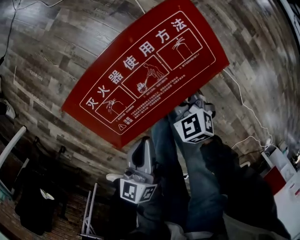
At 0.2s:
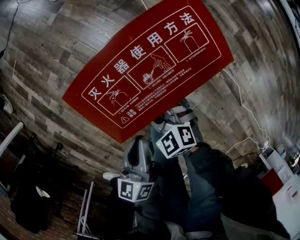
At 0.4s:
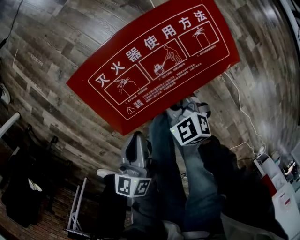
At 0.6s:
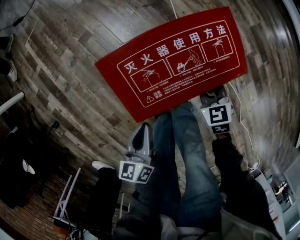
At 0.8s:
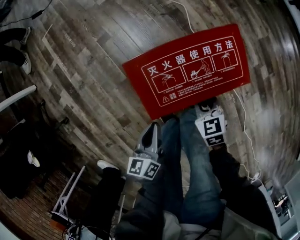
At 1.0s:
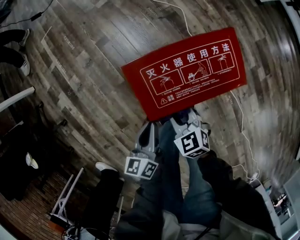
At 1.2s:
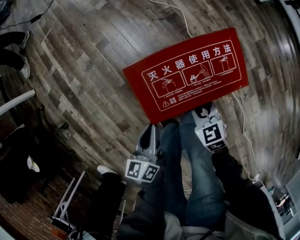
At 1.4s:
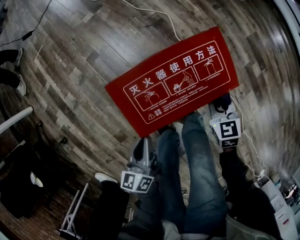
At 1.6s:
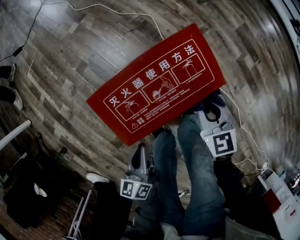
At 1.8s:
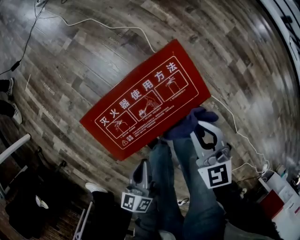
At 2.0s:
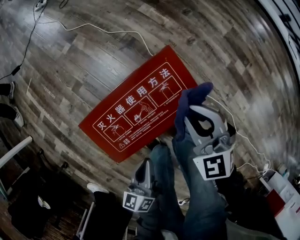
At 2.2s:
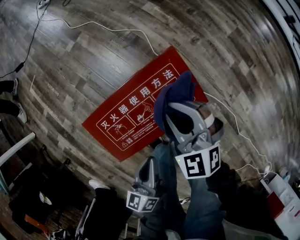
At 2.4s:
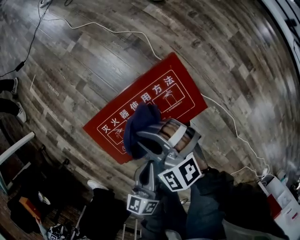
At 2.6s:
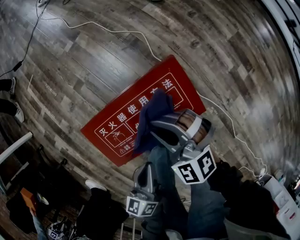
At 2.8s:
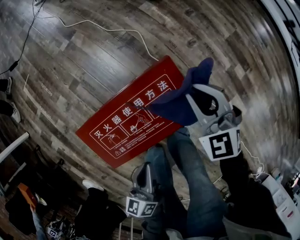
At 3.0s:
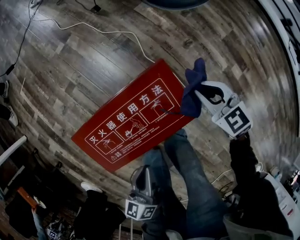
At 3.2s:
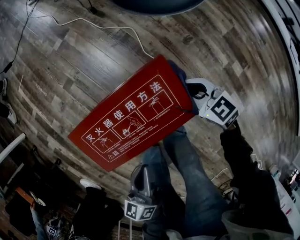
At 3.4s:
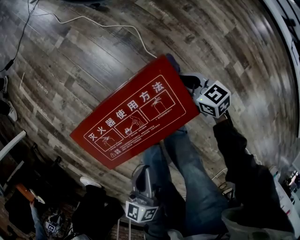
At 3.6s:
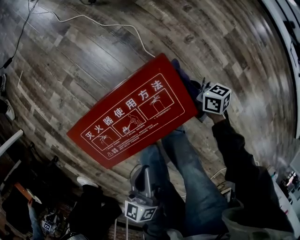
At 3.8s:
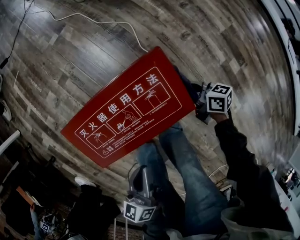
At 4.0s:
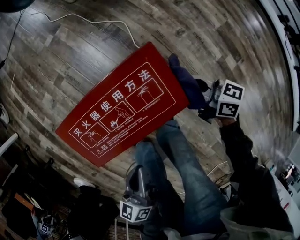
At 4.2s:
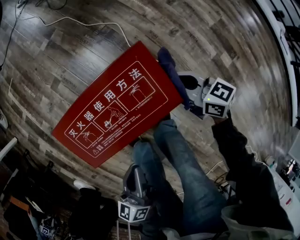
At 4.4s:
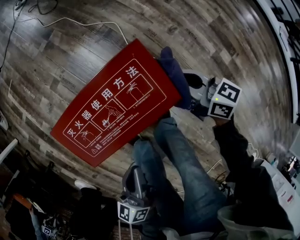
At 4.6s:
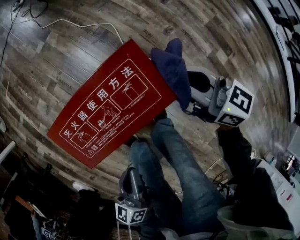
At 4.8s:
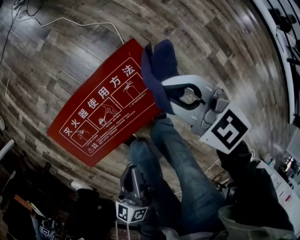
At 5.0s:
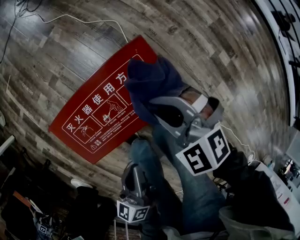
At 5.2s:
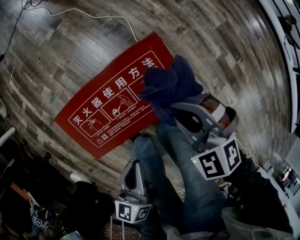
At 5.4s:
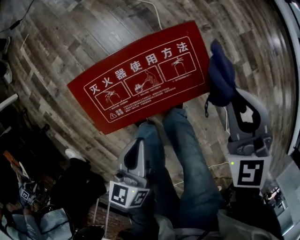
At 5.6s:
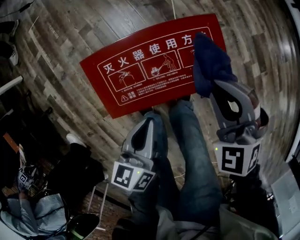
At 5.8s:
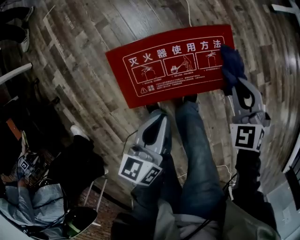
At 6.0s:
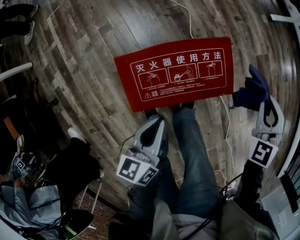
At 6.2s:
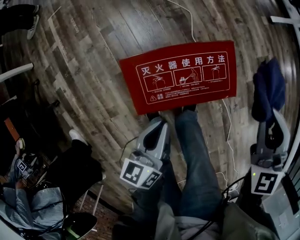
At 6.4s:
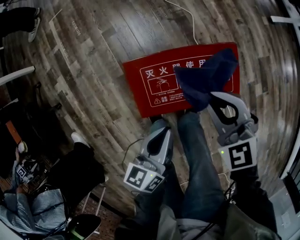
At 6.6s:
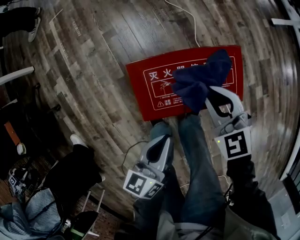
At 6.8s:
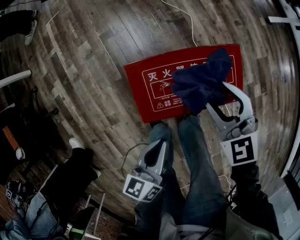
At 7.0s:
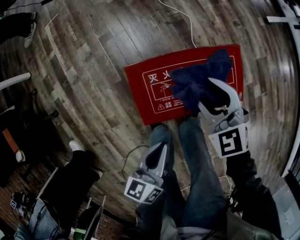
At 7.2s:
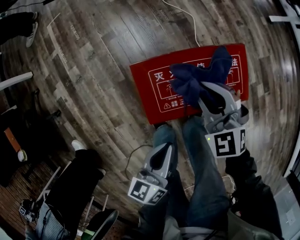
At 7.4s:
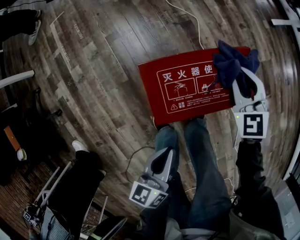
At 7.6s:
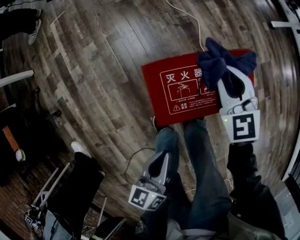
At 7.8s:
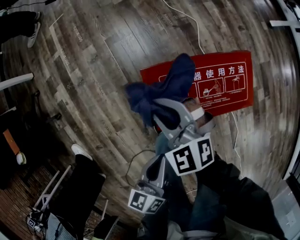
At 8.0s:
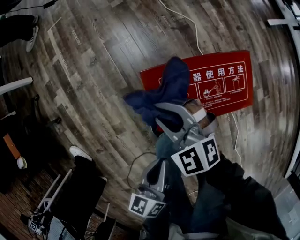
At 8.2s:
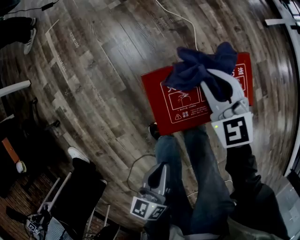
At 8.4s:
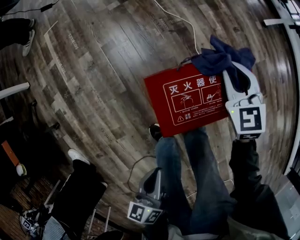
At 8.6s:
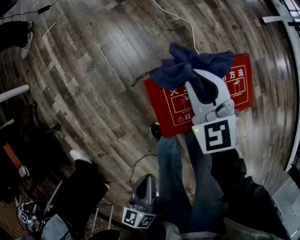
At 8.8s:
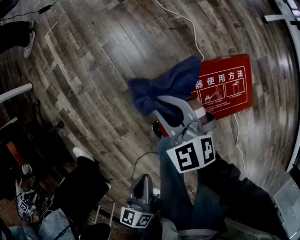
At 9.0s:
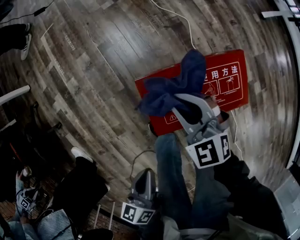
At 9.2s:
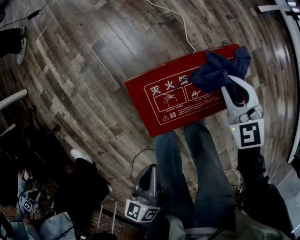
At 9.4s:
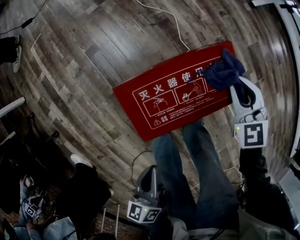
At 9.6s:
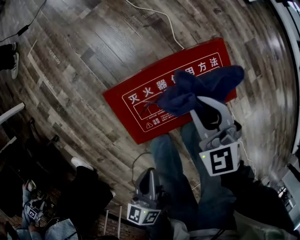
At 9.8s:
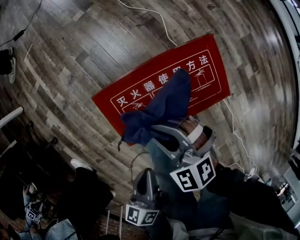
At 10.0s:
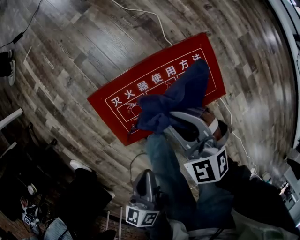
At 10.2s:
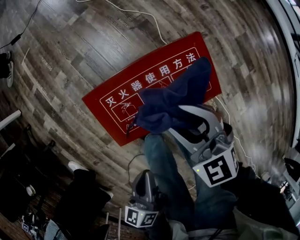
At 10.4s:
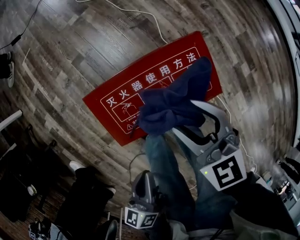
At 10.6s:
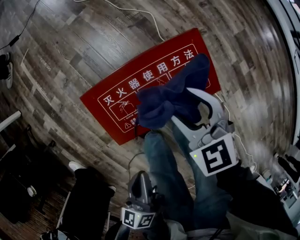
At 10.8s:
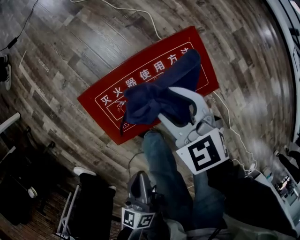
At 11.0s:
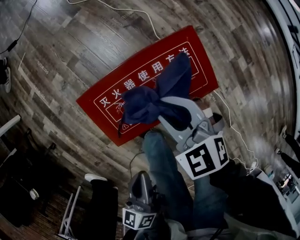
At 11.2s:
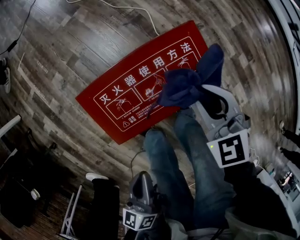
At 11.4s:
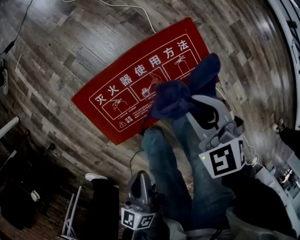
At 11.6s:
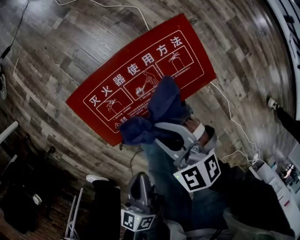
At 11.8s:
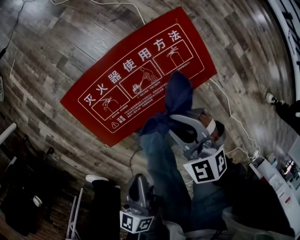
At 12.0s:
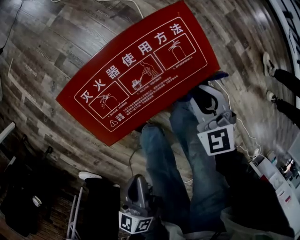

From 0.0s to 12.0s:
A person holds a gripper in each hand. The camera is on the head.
From 0.0s to 1.6s: The right gripper swings left and right, about 20 cm each way, with 3 reversals, and swivels approximately 20 degrees.
From 1.6s to 3.0s: The left gripper heads to the right and upward, covering about 10 cm, while the right gripper is displaced to the right and forward by about 15 cm.
From 3.0s to 4.4s: The right gripper reaches about 10 cm downward, then returns, and changes its angle by approximately 40 degrees.
From 4.4s to 6.0s: The left gripper moves forward, approximately 5 cm. Meanwhile the right gripper moves up and down over about 15 cm, changing direction 2 times, and twists some 60 degrees counterclockwise, seen from behind.
From 6.0s to 7.6s: The right gripper moves roughly 25 cm, rotates approximately 20 degrees, and opens, then closes again, while the left gripper shifts by about 10 cm.
From 7.6s to 9.0s: The right gripper goes left and right, about 20 cm each way, reversing 3 times. Meanwhile the left gripper shifts about 5 cm to the left.
From 9.0s to 10.4s: The right gripper moves left and right over roughly 25 cm, changing direction 2 times, and opens. Meanwhile the left gripper goes some 10 cm to the right.
From 10.4s to 12.0s: The right gripper swings left and right, some 15 cm each way, with 2 reversals, turns by approximately 20 degrees, and closes.

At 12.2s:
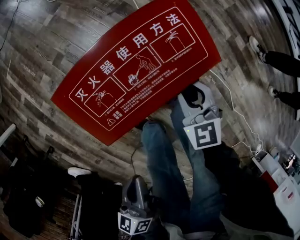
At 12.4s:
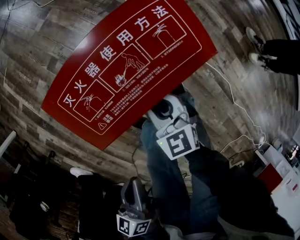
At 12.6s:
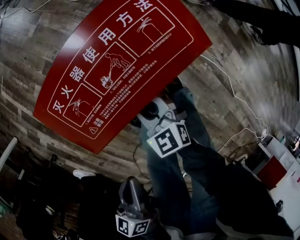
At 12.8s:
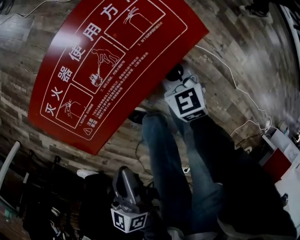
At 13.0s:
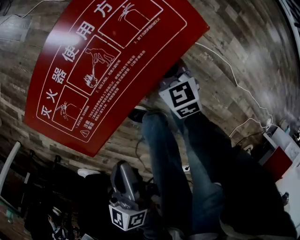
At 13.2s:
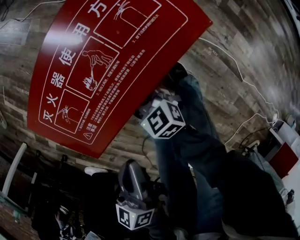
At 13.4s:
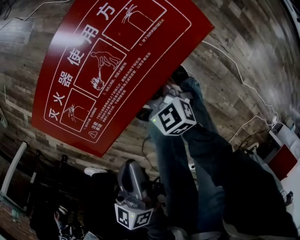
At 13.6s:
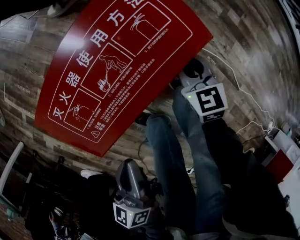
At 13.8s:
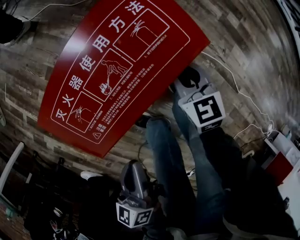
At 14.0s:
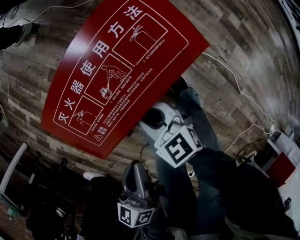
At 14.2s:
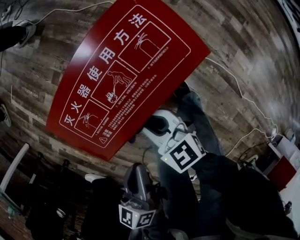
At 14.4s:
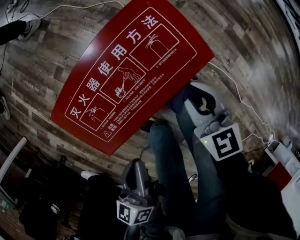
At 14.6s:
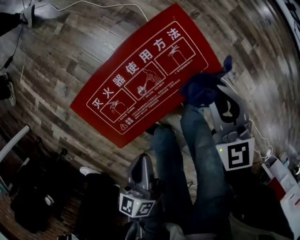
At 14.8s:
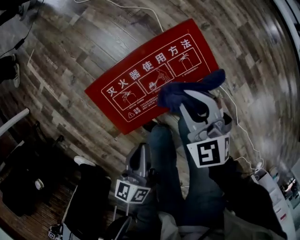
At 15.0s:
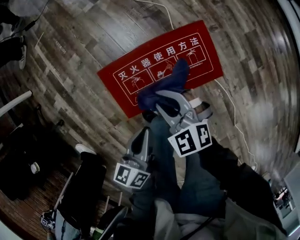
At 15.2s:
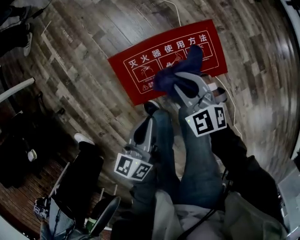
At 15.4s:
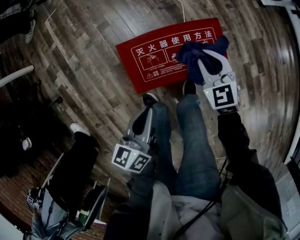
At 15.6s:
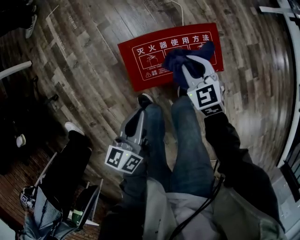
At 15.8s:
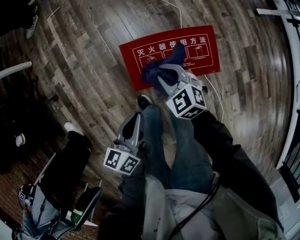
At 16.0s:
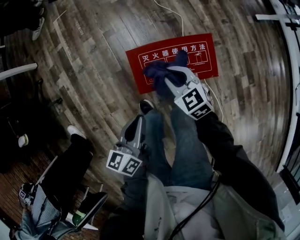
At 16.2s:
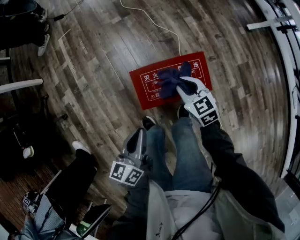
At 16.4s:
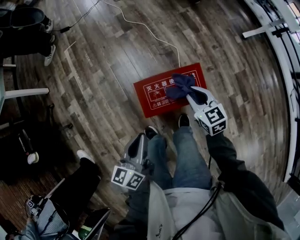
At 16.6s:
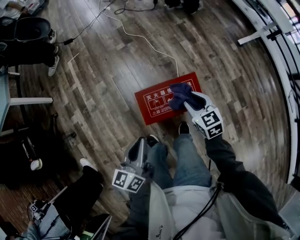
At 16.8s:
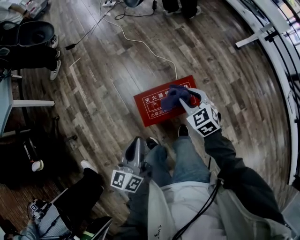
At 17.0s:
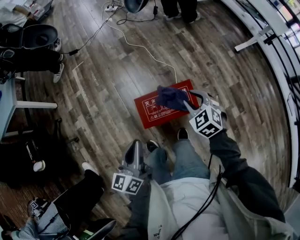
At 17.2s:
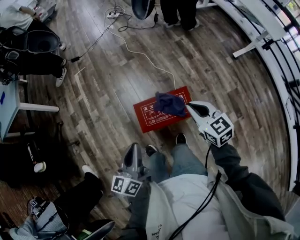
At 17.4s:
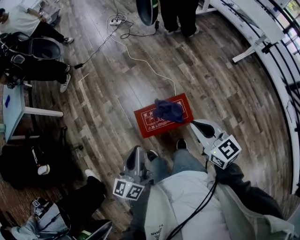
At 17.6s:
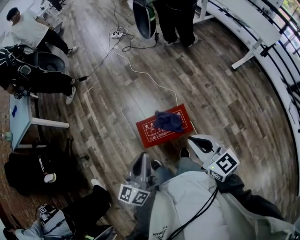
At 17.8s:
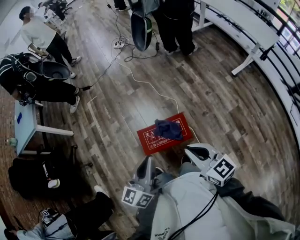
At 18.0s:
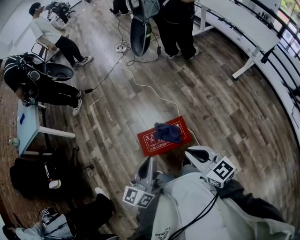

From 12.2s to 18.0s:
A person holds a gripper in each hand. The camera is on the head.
From 12.2s to 13.6s: The right gripper goes left and right, about 15 cm each way, reversing 3 times. Meanwhile the left gripper moves forward, about 5 cm.
From 13.6s to 15.0s: The right gripper moves left and right over about 20 cm, changing direction 2 times, and turns by about 50 degrees. Meanwhile the left gripper ends up about 5 cm from where it was.
From 15.0s to 16.6s: The left gripper goes approximately 20 cm upward; the right gripper moves upward and to the right, roughly 15 cm, swivels roughly 20 degrees, and opens its fingers.
From 16.6s to 18.0s: The right gripper shifts about 30 cm upward and backward, turns by some 30 degrees, and closes its fingers; the left gripper goes approximately 25 cm upward and to the right.

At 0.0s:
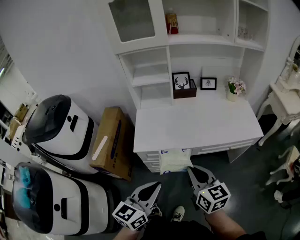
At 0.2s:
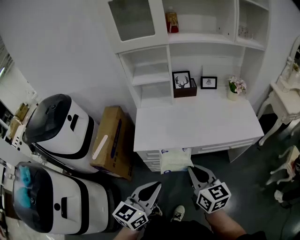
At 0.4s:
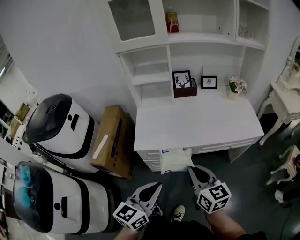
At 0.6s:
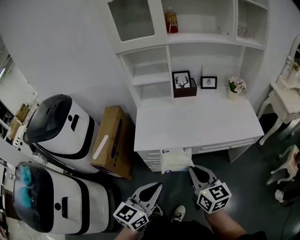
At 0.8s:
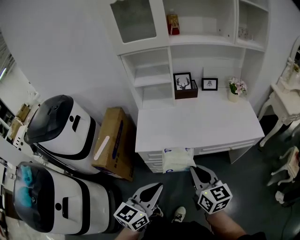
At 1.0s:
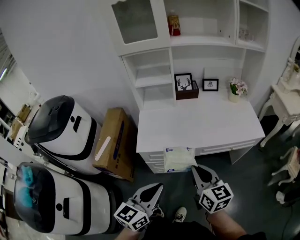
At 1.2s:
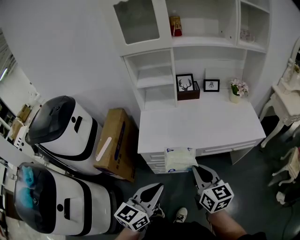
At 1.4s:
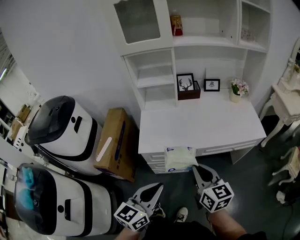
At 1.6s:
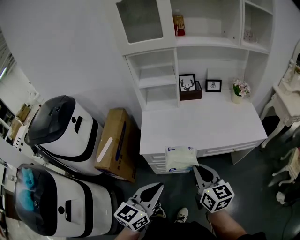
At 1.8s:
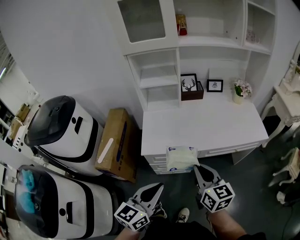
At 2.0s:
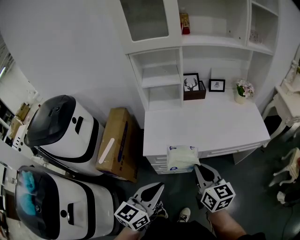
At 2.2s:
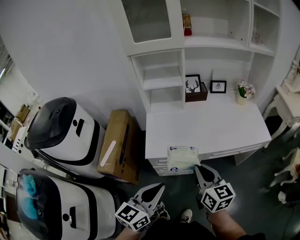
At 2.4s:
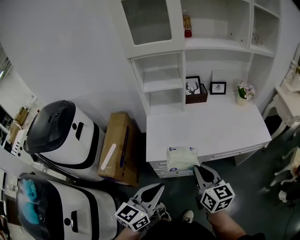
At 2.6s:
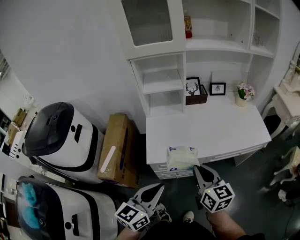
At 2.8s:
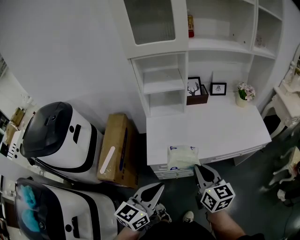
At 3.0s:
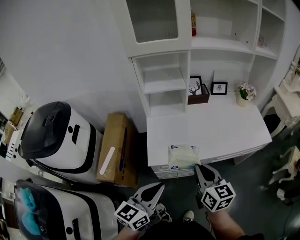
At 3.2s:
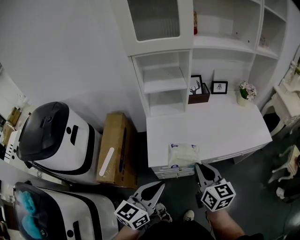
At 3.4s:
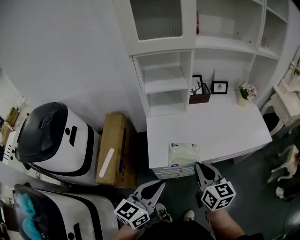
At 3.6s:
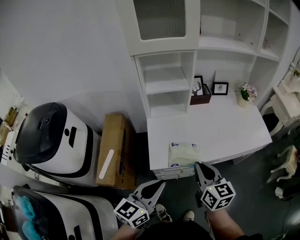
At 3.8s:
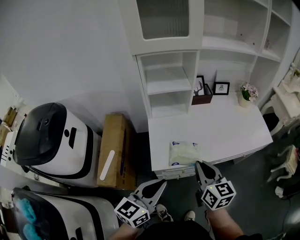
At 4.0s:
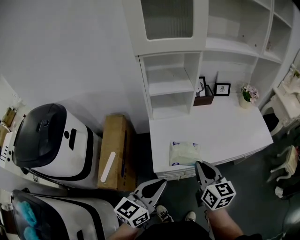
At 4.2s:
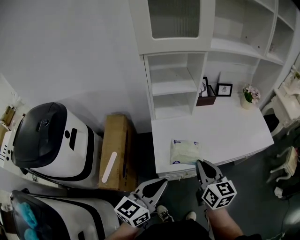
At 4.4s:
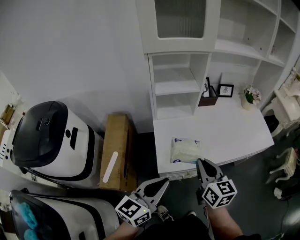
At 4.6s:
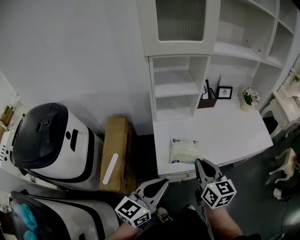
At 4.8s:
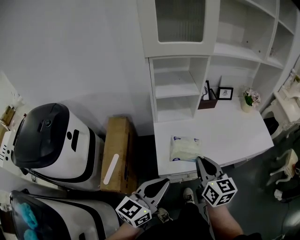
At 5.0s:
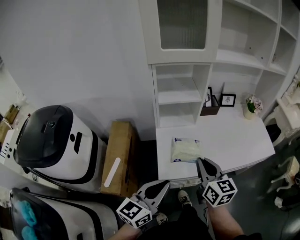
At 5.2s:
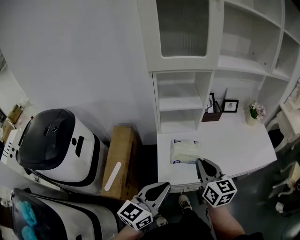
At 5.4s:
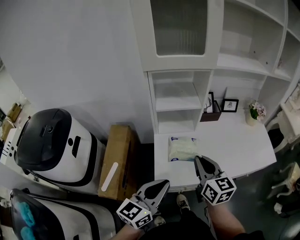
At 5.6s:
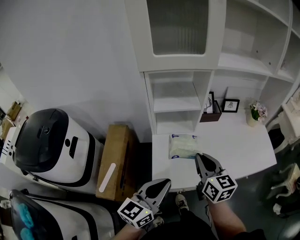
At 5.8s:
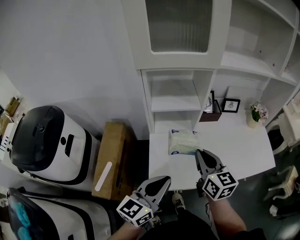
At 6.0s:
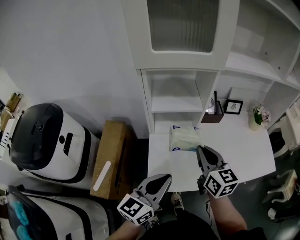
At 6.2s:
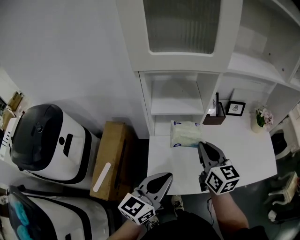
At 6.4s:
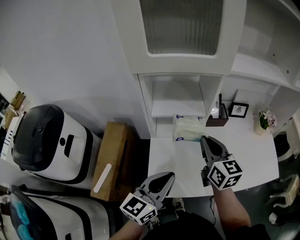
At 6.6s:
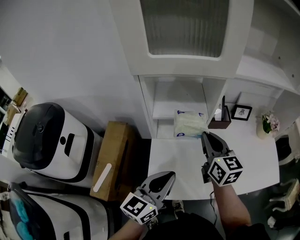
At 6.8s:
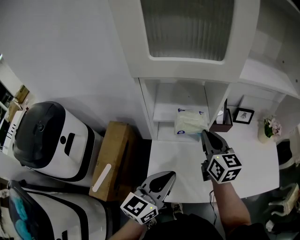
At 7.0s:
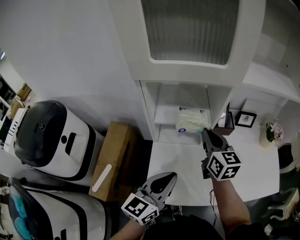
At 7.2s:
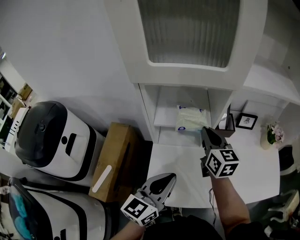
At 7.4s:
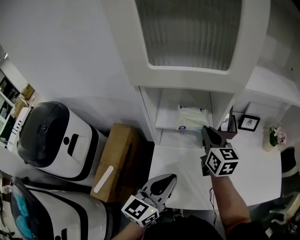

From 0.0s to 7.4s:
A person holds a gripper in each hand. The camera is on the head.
From 0.0s to 1.4s: There are only small adjustments of the grippers.
From 1.4s to 3.0s: The grippers both shift to the left and forward by about 15 cm.
From 3.0s to 4.4s: Both grippers move to the left and forward, about 10 cm.
From 4.4s to 6.0s: Both grippers travel together forward, roughly 15 cm.
From 6.0s to 7.4s: The right gripper moves forward, roughly 20 cm; the left gripper goes some 10 cm forward.
